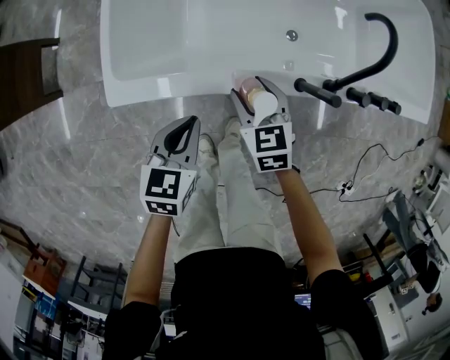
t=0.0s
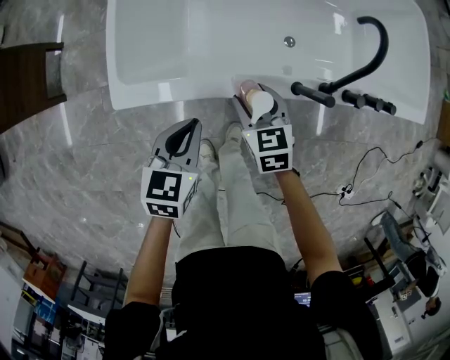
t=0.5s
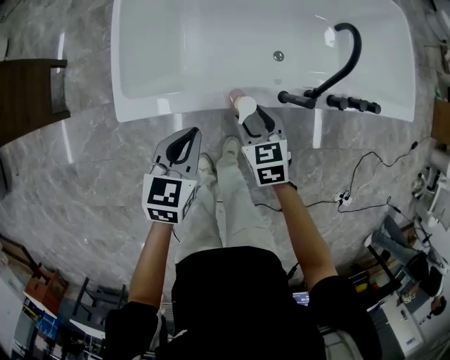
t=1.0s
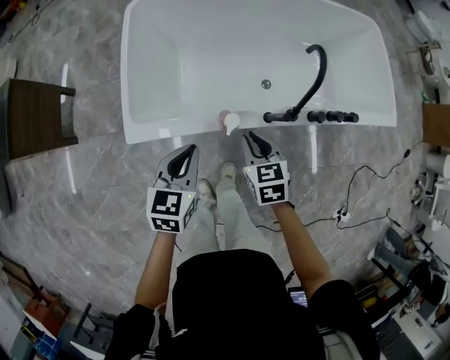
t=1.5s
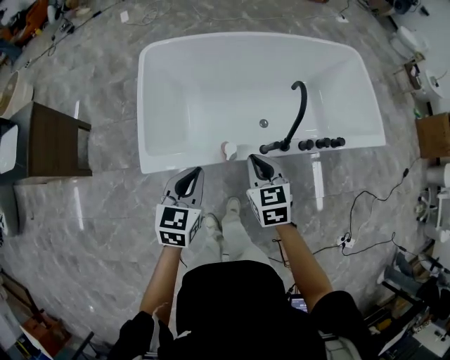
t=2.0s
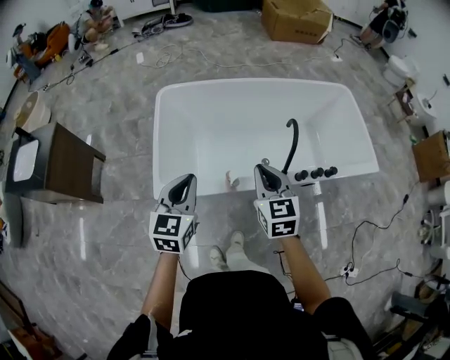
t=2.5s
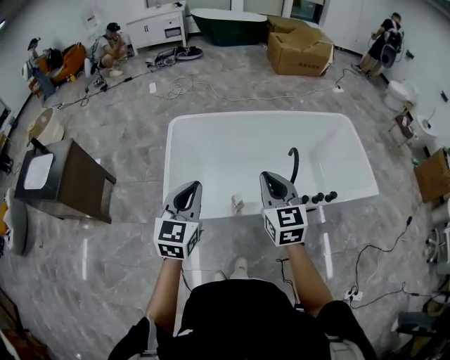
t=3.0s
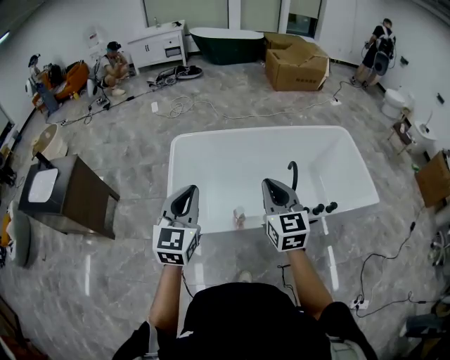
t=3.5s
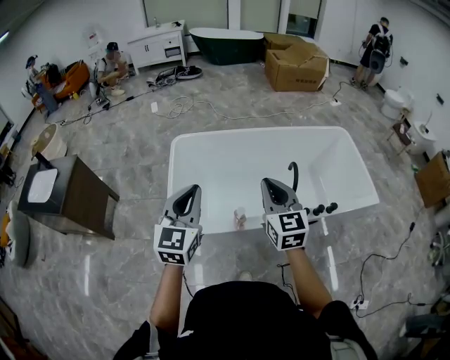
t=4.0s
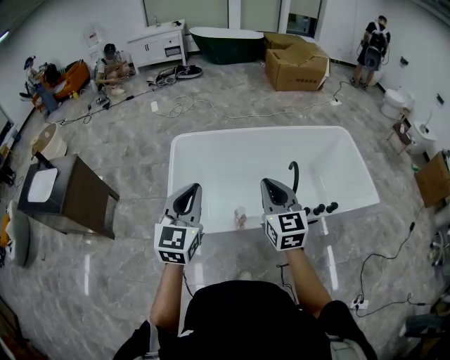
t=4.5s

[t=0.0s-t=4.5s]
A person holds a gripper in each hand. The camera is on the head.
t=0.0s to t=2.0s: The two grippers go roughly 25 cm upward. The right gripper closes up.
t=2.0s to t=4.5s: Both grippers travel together upward, about 25 cm. The right gripper rotates about 30 degrees, while the left gripper swivels roughly 30 degrees.

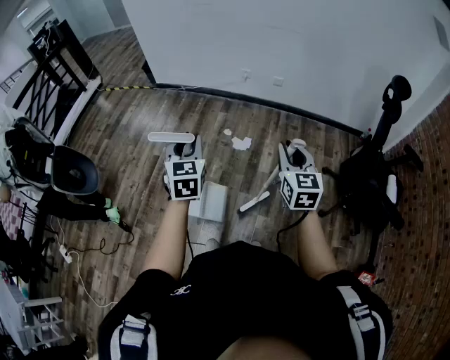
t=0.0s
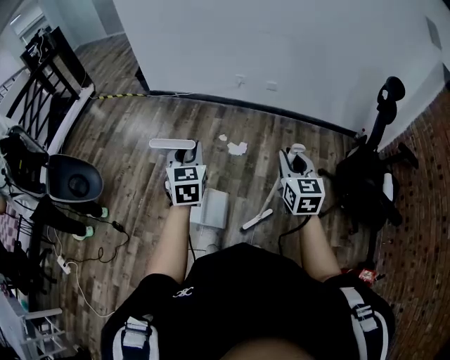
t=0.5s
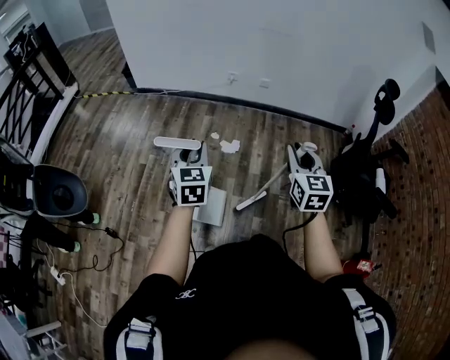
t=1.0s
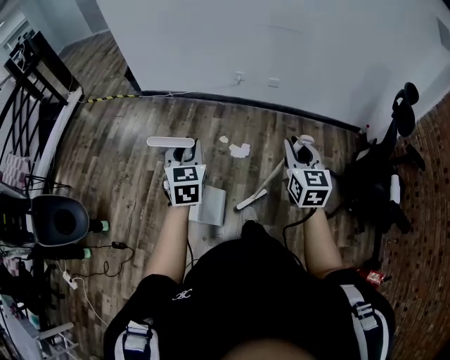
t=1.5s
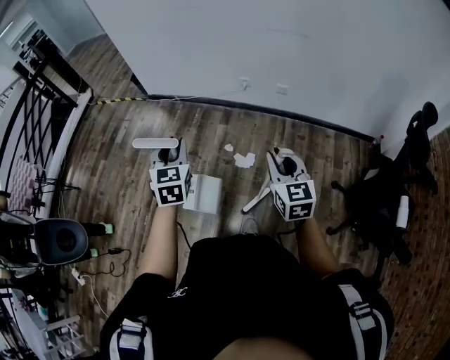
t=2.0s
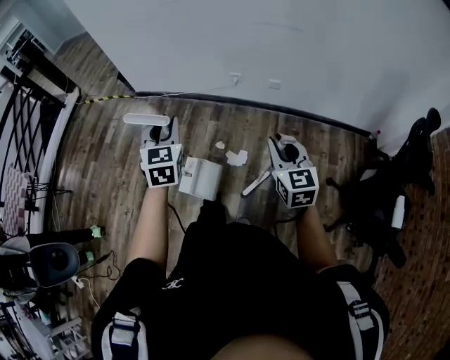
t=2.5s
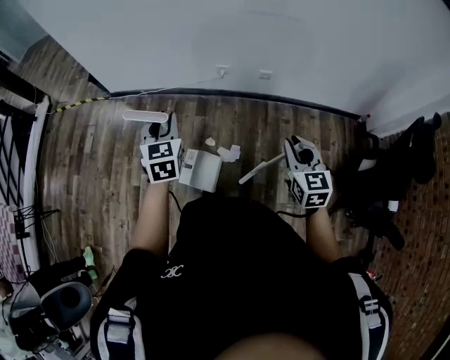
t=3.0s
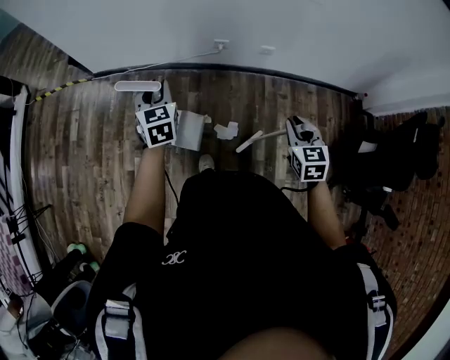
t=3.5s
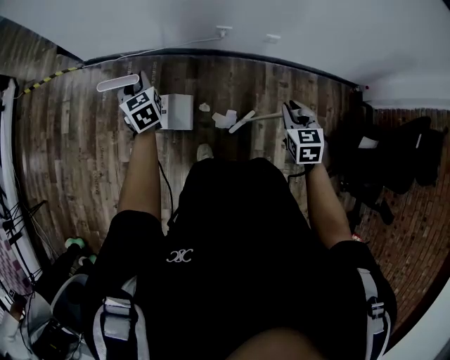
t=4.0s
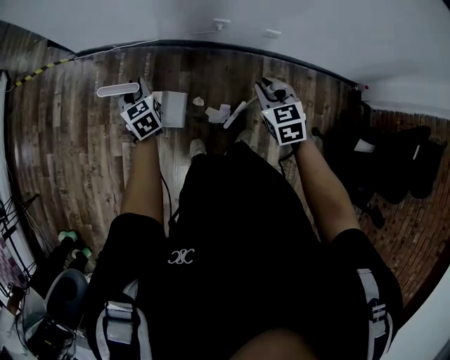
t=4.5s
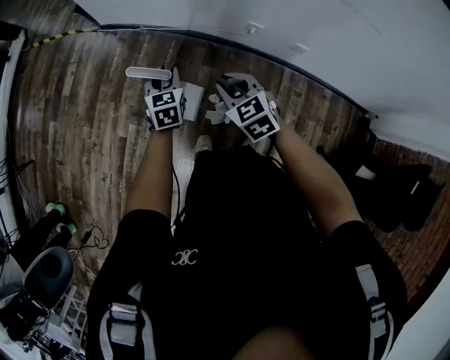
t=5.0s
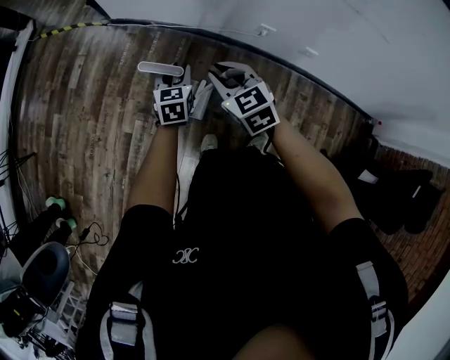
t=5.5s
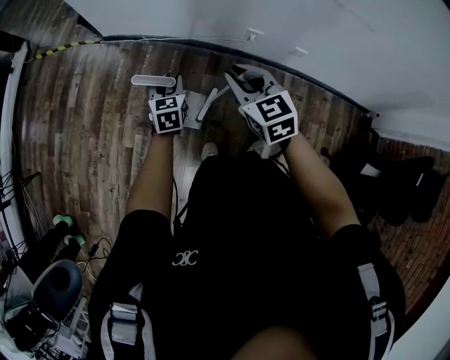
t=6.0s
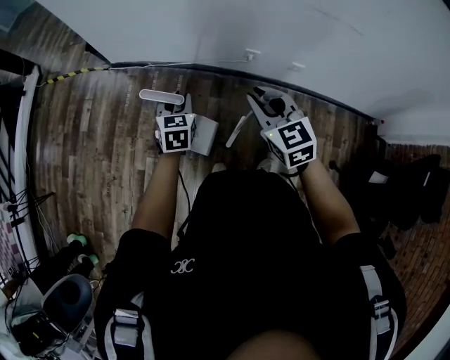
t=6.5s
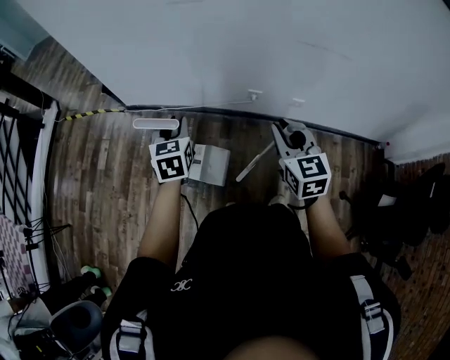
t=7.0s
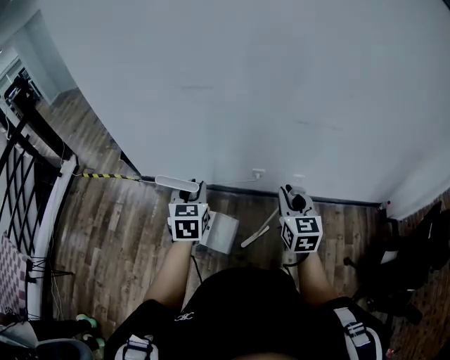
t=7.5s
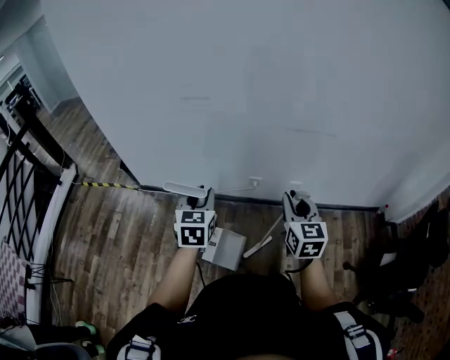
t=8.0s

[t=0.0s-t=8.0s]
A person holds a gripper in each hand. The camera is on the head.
t=0.0s to t=2.0s: The two grippers go approximately 25 cm forward.
t=2.0s to t=4.0s: The two grippers go about 40 cm forward and downward. The right gripper turns by some 30 degrees.
t=4.0s to t=6.0s: The right gripper is displaced to the left and forward by some 30 cm, and changes its angle by approximately 30 degrees, while the left gripper moves downward, some 5 cm.
t=6.0s to t=8.0s: The left gripper shifts some 30 cm upward; the right gripper goes about 25 cm to the right and upward, and changes its angle by roughly 40 degrees.

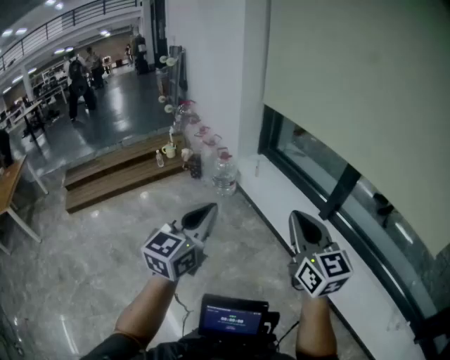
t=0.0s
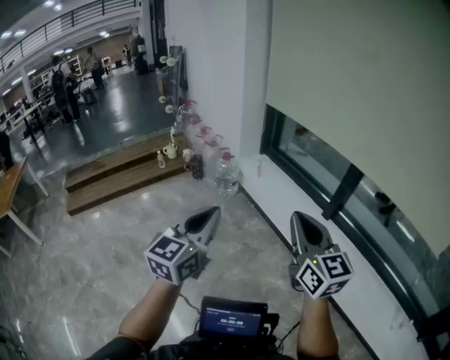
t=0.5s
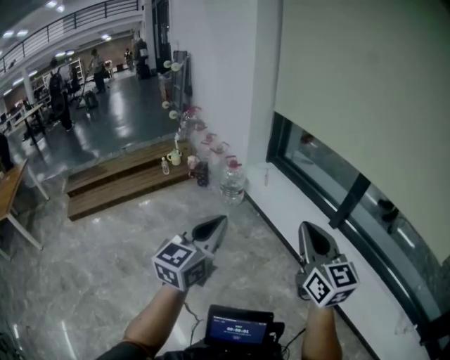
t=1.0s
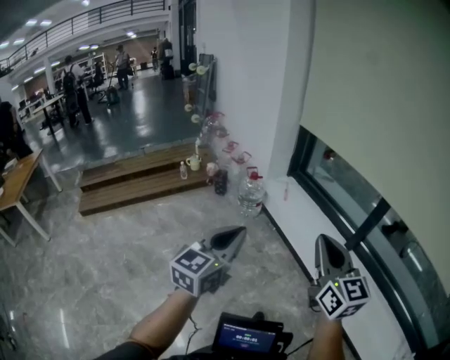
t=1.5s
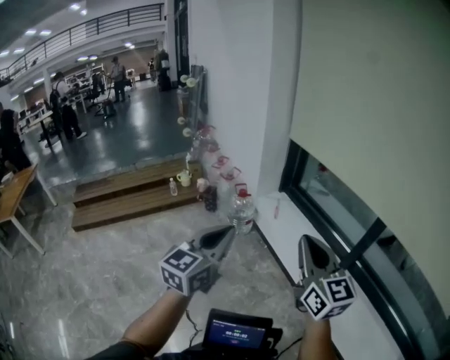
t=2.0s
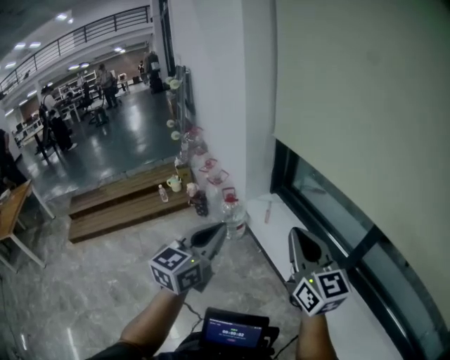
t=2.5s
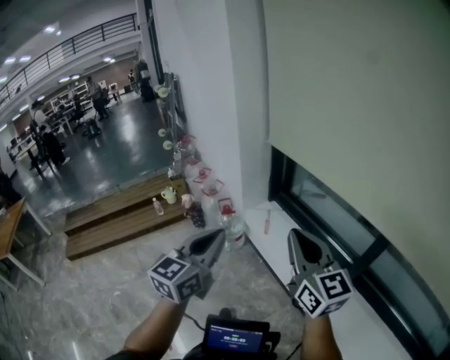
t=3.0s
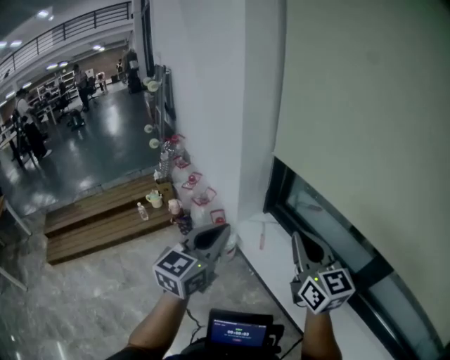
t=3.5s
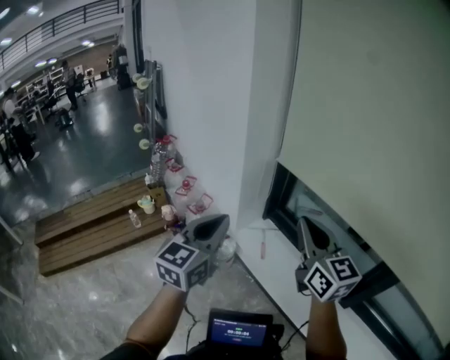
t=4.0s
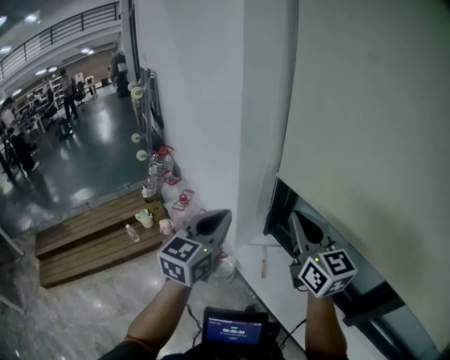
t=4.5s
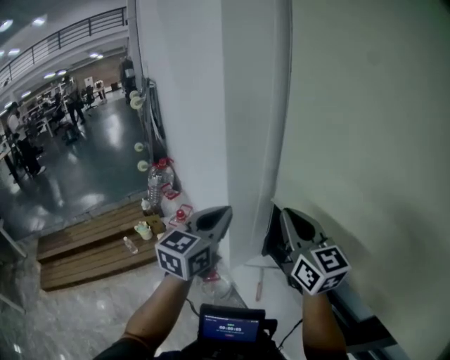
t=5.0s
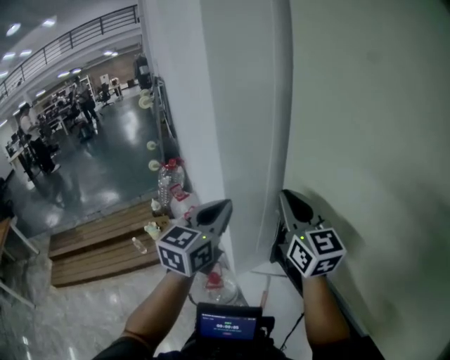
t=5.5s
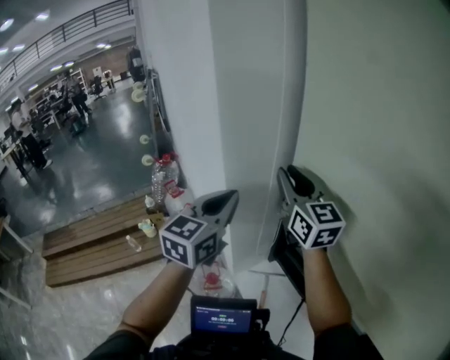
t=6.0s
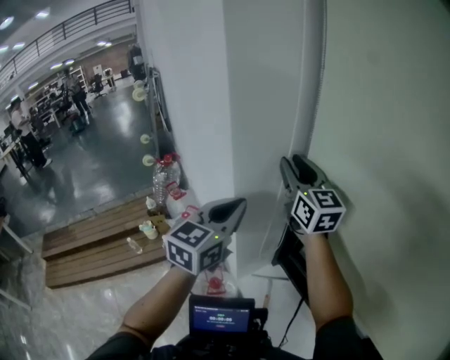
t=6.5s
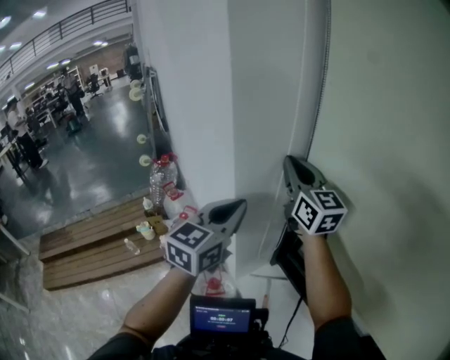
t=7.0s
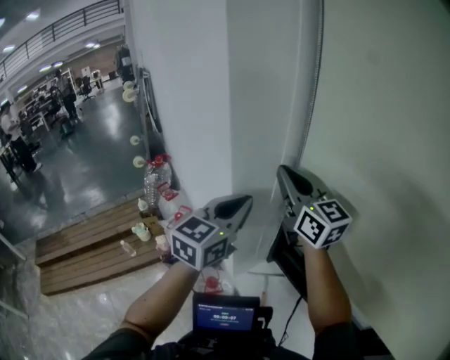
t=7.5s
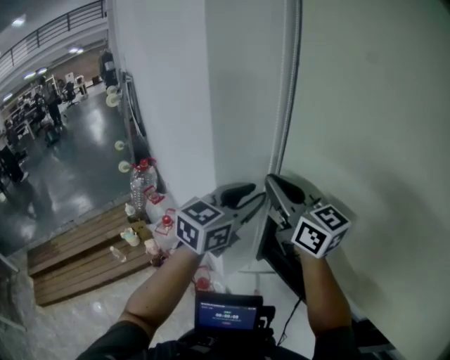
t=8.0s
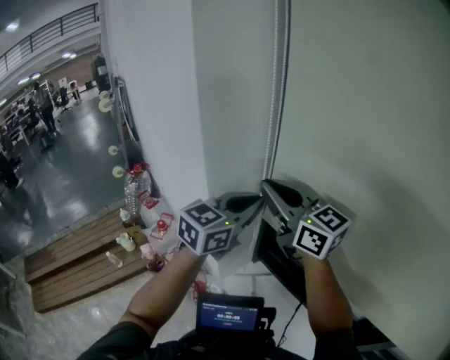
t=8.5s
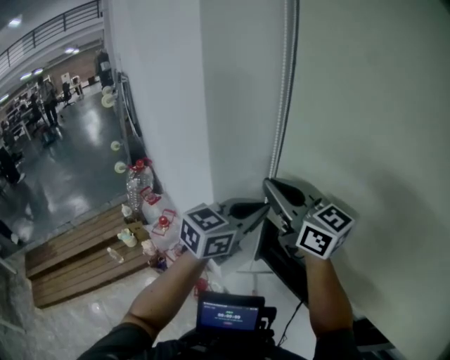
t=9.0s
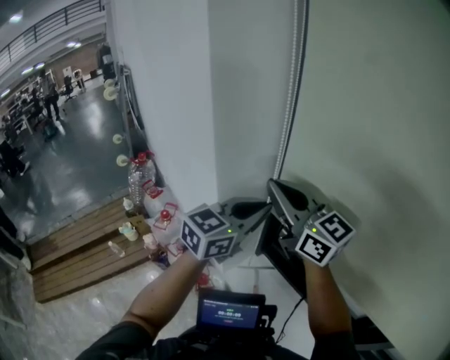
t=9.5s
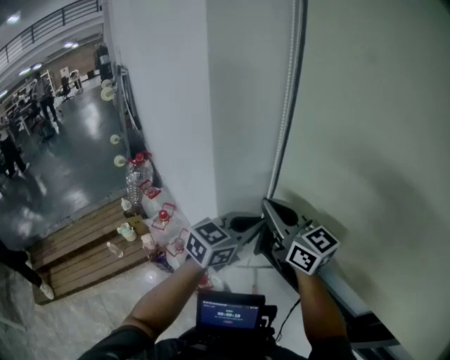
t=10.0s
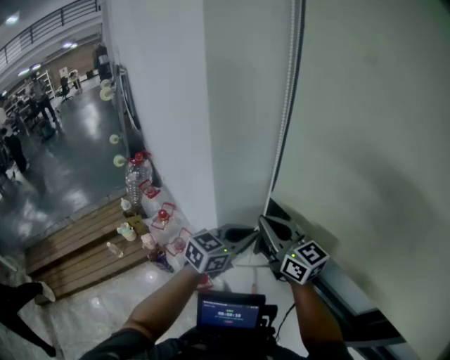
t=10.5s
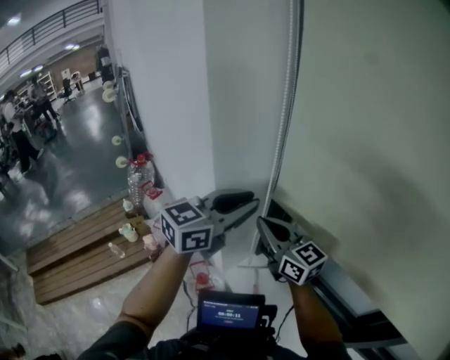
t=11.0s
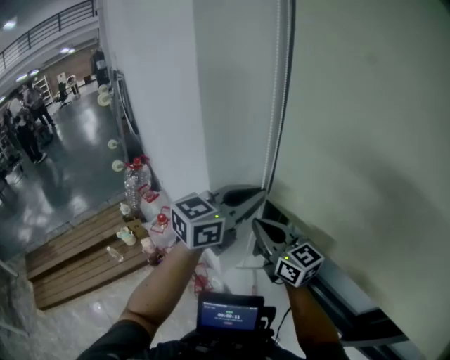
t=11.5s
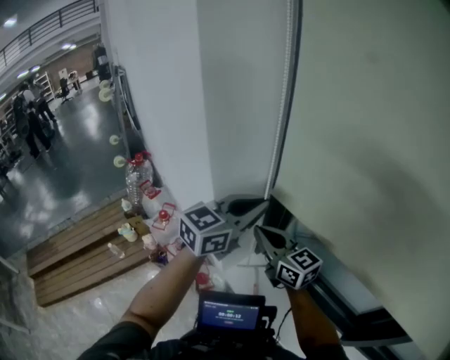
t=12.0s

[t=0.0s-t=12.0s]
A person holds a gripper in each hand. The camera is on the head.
t=0.0s to t=2.0s: The grippers both shift forward by approximately 20 cm.
t=2.0s to t=4.0s: The two grippers travel together, forward, some 40 cm.
t=4.0s to t=6.0s: The two grippers go about 35 cm forward. The right gripper opens up.
t=6.0s to t=8.0s: The left gripper goes some 5 cm to the right, swivels approximately 20 degrees, and opens up, while the right gripper closes up.
t=8.0s to t=10.0s: The grippers both shift downward by some 10 cm. The left gripper closes.
t=10.0s to t=12.0s: The left gripper swings up and down, about 15 cm each way, with 2 reversals, and opens, then closes once more, while the right gripper moves downward, about 10 cm.

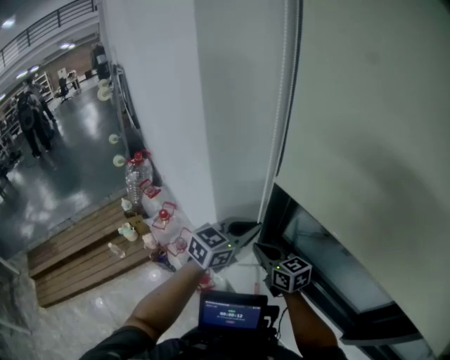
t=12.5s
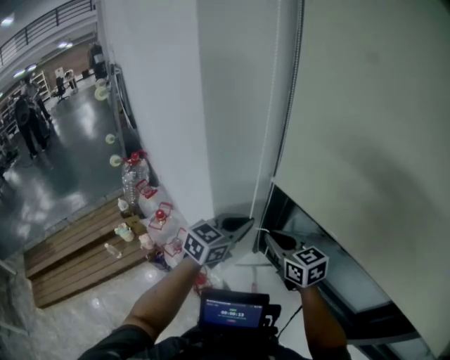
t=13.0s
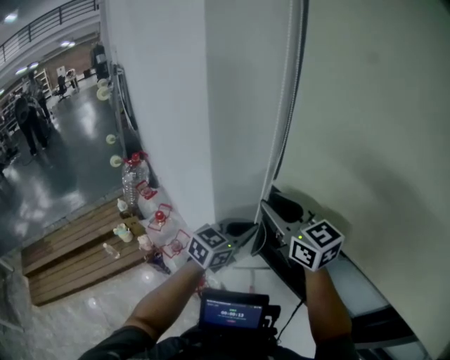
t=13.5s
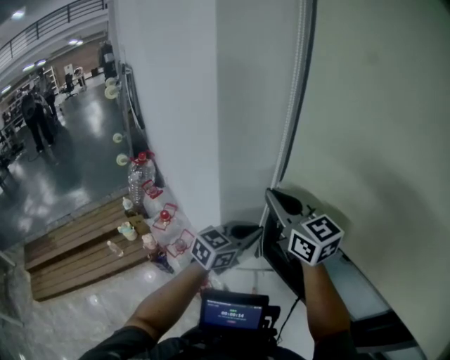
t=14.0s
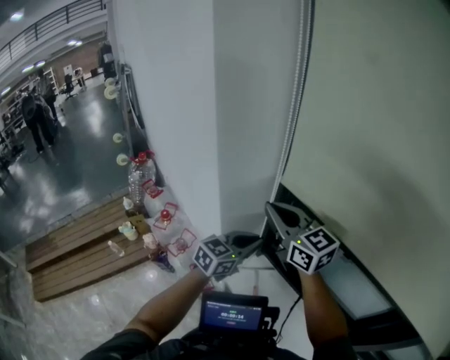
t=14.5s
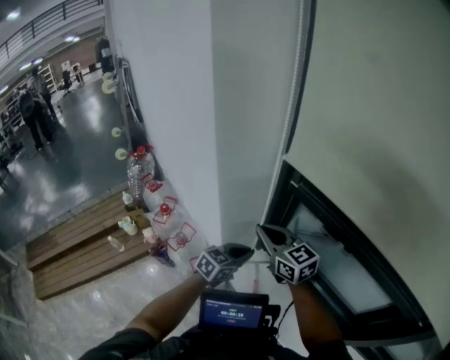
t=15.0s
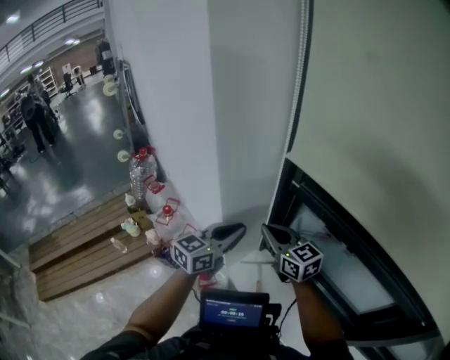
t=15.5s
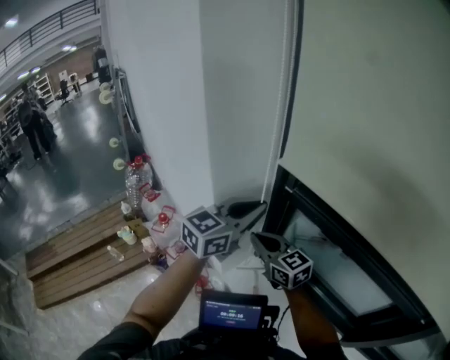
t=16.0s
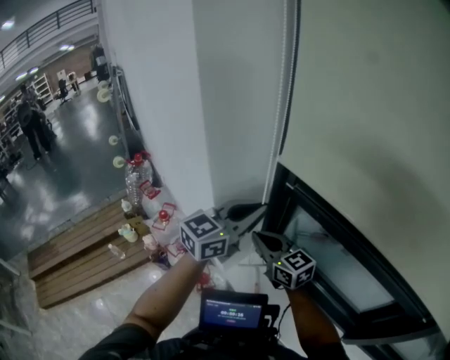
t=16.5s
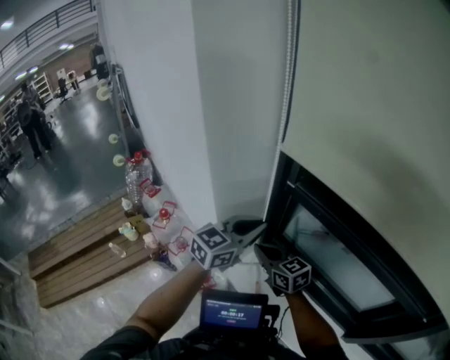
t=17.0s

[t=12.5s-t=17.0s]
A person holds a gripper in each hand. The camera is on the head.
t=12.5s to t=14.5s: The left gripper is displaced downward by approximately 5 cm. The right gripper moves upward, roughly 20 cm, and opens, then closes again.
t=14.5s to t=17.0s: The left gripper moves up and down over some 25 cm, changing direction 2 times; the right gripper shifts about 20 cm downward.
